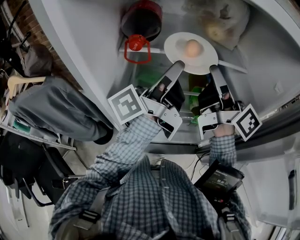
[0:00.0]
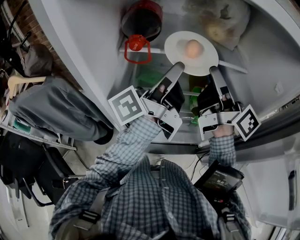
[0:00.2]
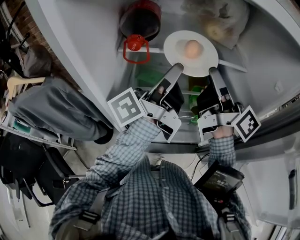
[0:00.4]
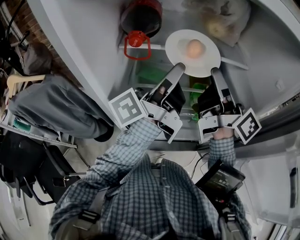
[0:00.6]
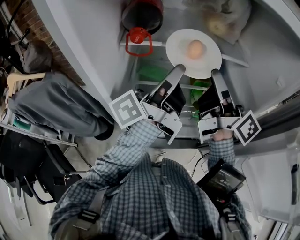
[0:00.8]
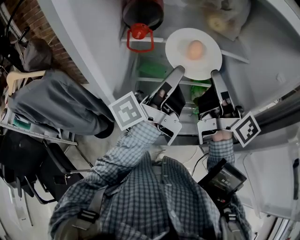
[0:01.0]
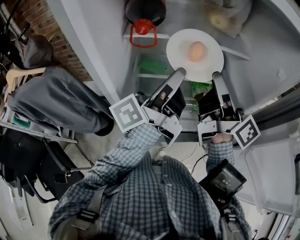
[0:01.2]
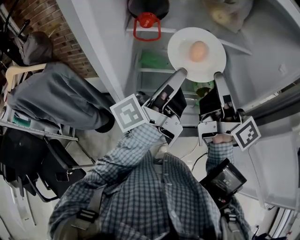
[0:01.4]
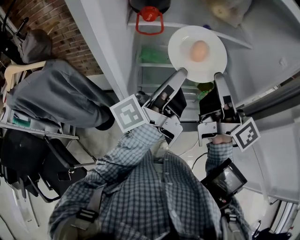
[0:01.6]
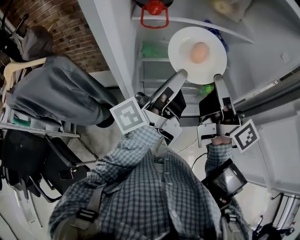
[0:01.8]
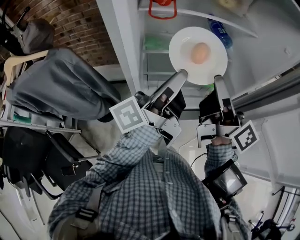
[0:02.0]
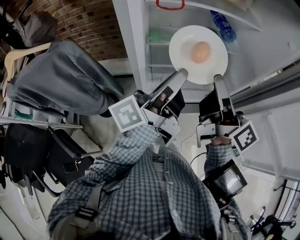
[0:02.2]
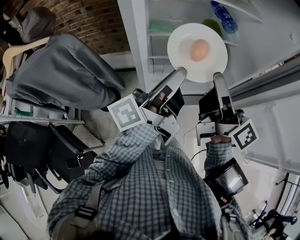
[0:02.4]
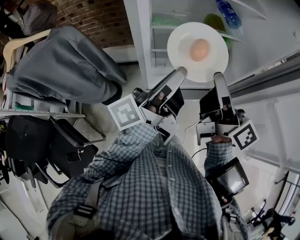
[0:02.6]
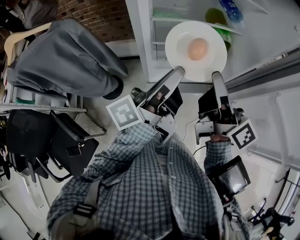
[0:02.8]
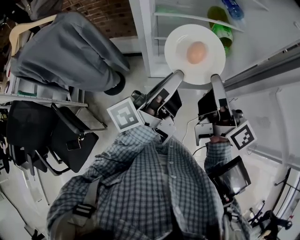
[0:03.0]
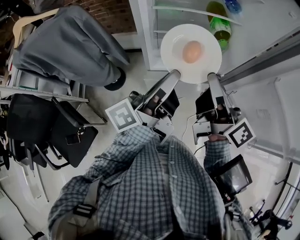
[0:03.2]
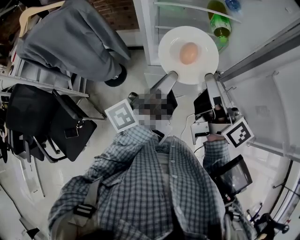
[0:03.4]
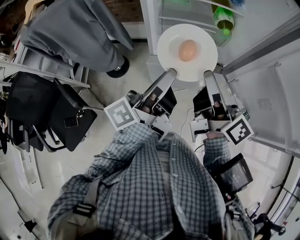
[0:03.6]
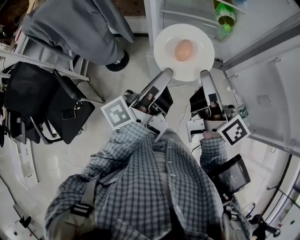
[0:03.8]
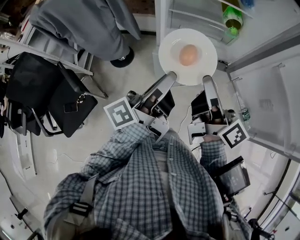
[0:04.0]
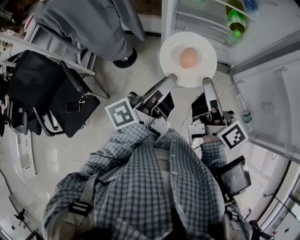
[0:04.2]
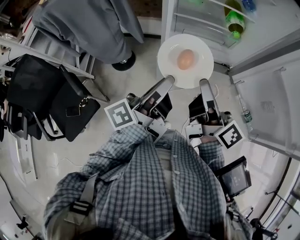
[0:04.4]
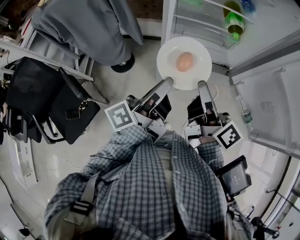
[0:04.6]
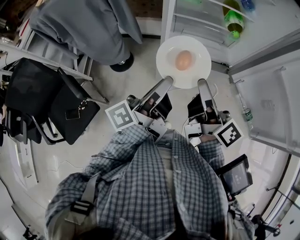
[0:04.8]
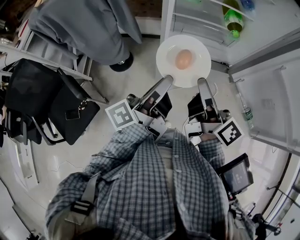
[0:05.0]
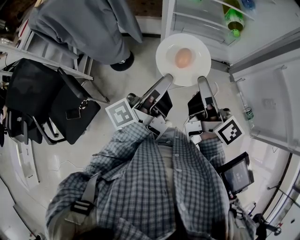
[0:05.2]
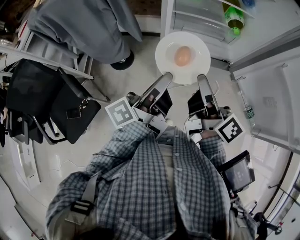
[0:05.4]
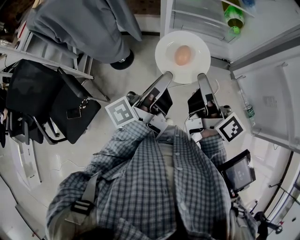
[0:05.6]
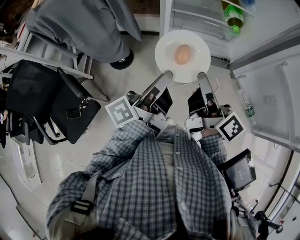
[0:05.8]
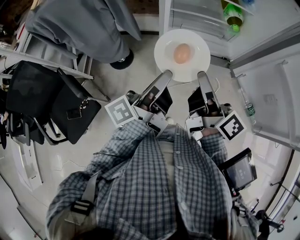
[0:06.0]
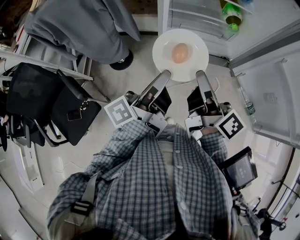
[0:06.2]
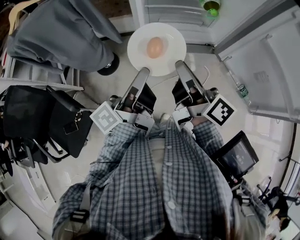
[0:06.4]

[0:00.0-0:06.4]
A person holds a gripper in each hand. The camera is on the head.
0:00.0 to 0:01.6: The two grippers go approximately 10 cm backward.
0:01.6 to 0:03.2: The two grippers go roughly 20 cm backward and downward.
0:03.2 to 0:04.8: Both grippers move backward and to the left, some 10 cm.
0:04.8 to 0:06.4: There are only small adjustments of the grippers.

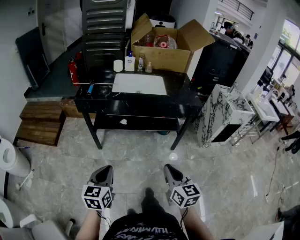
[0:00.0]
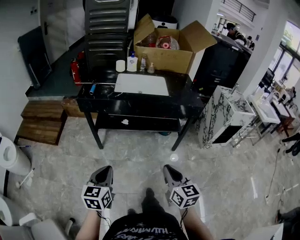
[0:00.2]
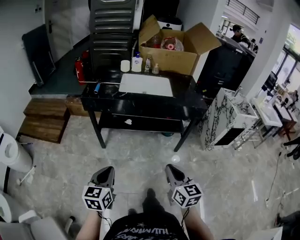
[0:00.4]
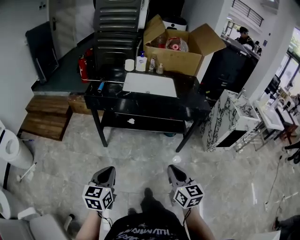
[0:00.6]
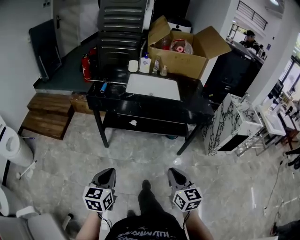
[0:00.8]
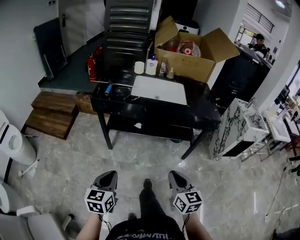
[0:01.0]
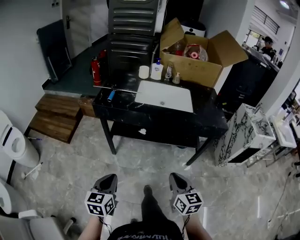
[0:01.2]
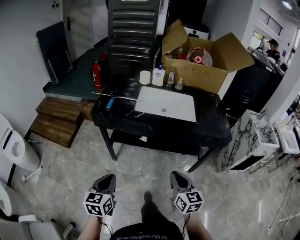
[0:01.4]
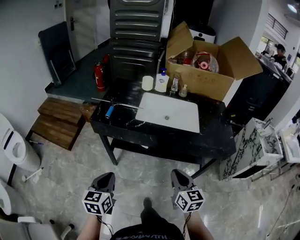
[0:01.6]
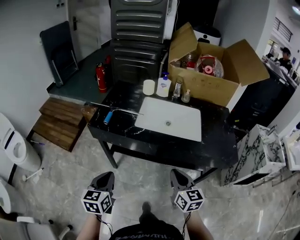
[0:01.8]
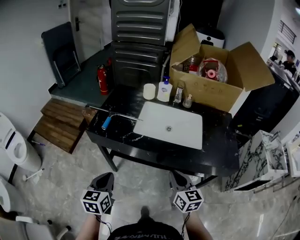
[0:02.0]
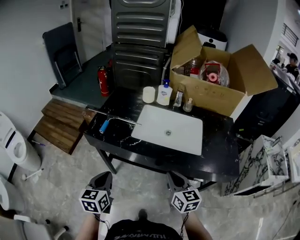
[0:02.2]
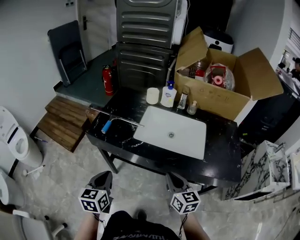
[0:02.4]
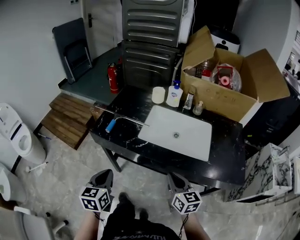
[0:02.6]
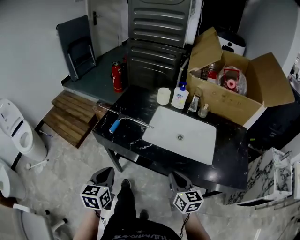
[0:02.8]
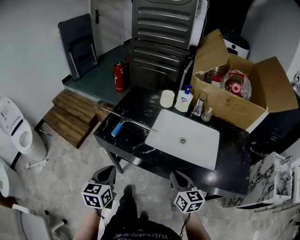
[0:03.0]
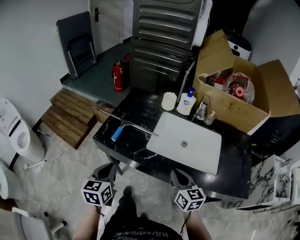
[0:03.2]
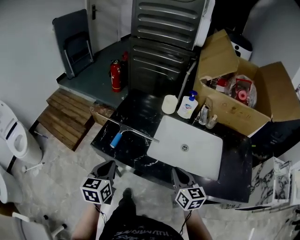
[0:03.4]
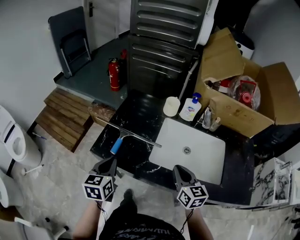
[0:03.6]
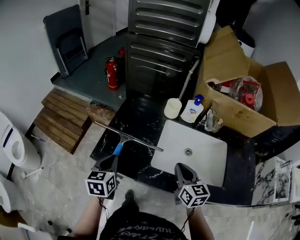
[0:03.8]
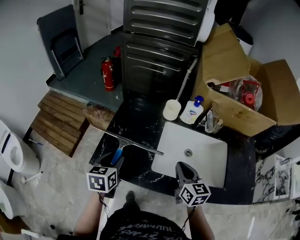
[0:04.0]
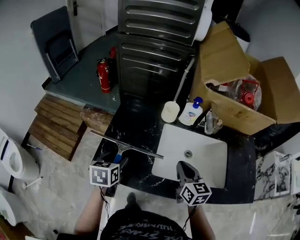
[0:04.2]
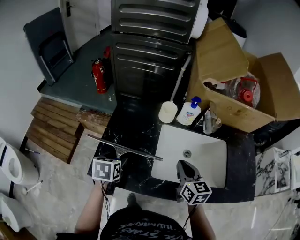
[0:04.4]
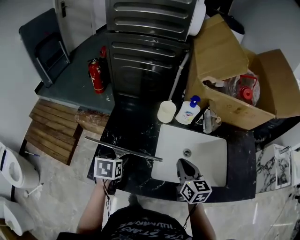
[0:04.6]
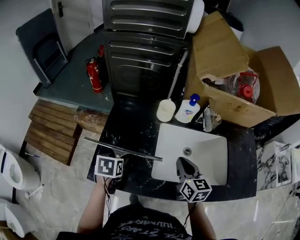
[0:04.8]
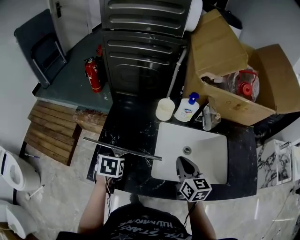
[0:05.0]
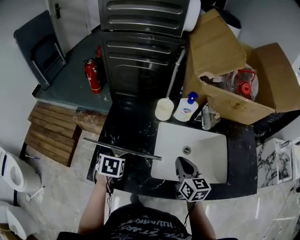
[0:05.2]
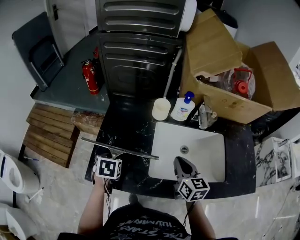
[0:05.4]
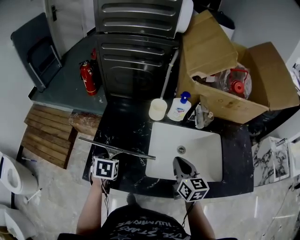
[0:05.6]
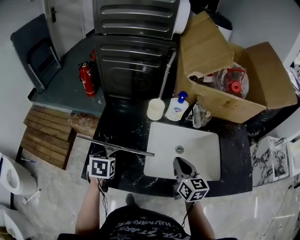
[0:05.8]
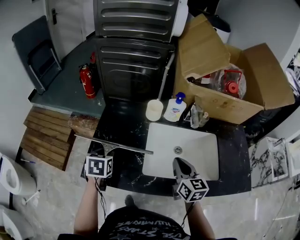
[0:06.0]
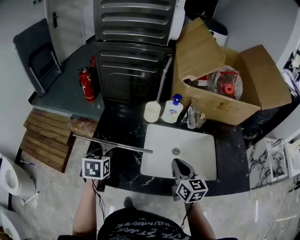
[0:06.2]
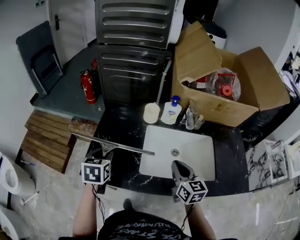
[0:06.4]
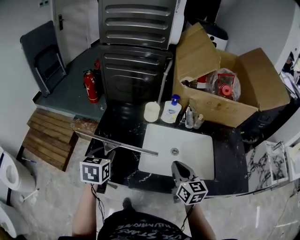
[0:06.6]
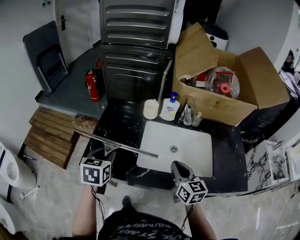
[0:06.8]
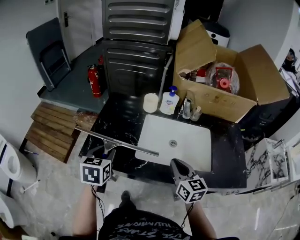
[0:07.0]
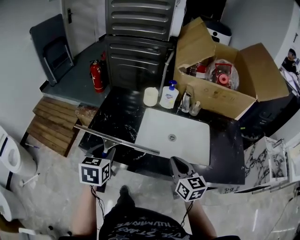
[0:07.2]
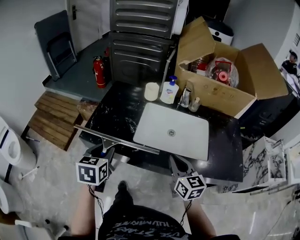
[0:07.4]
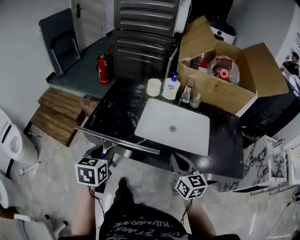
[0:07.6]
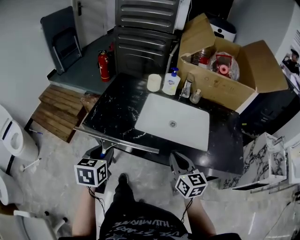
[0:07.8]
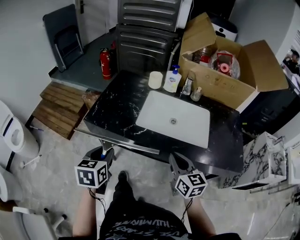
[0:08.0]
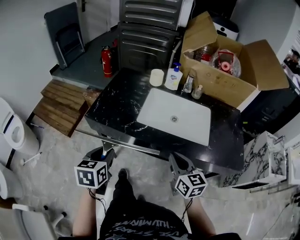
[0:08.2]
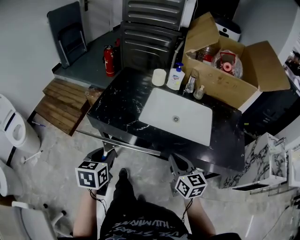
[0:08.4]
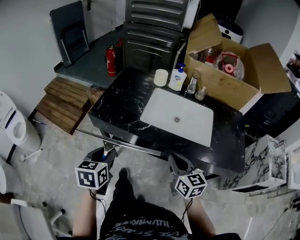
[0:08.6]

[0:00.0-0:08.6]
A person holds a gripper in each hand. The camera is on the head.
0:00.0 to 0:01.4: The grippers both shift forward by roughly 20 cm.
0:01.4 to 0:02.8: Both grippers move forward, about 25 cm.
0:02.8 to 0:04.4: Both grippers travel together forward, about 30 cm. The left gripper rotates some 30 degrees, and opens up.
0:04.4 to 0:05.8: The left gripper closes up.
0:05.8 to 0:07.2: The left gripper heads backward and upward, covering some 20 cm. The right gripper shifts approximately 15 cm backward.
0:07.2 to 0:08.6: The grippers both shift backward by approximately 15 cm.

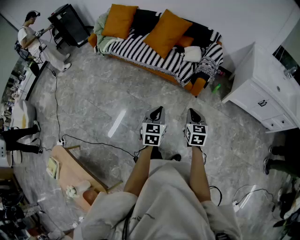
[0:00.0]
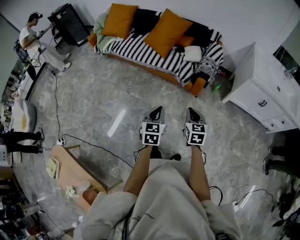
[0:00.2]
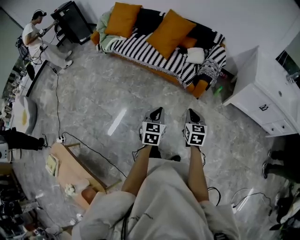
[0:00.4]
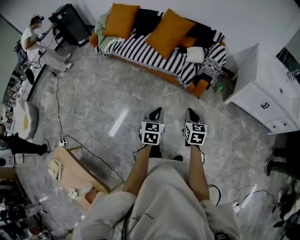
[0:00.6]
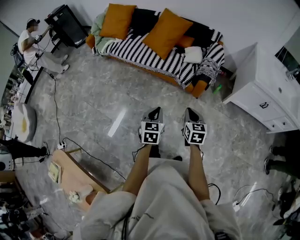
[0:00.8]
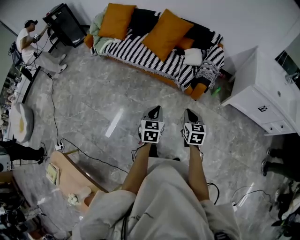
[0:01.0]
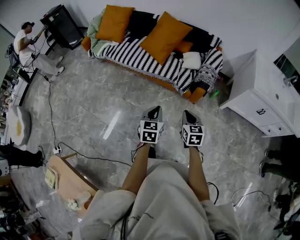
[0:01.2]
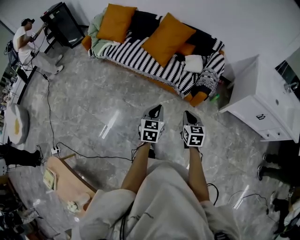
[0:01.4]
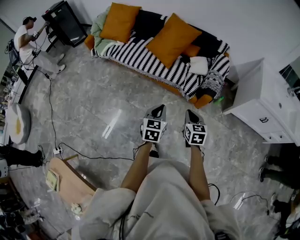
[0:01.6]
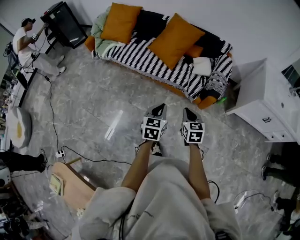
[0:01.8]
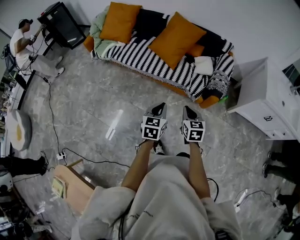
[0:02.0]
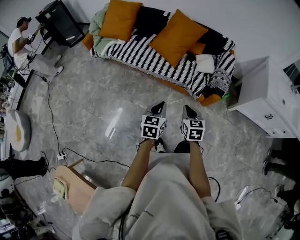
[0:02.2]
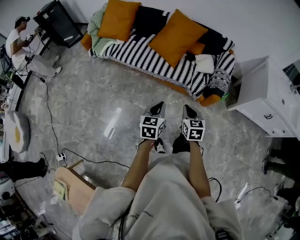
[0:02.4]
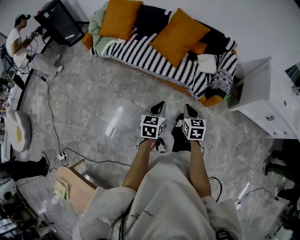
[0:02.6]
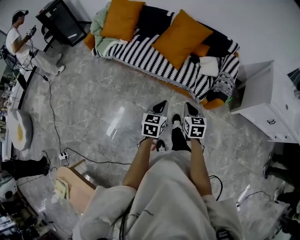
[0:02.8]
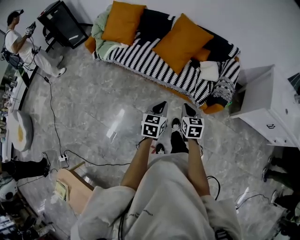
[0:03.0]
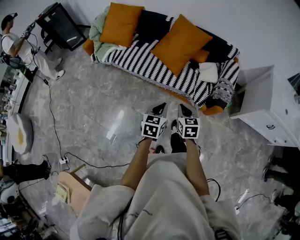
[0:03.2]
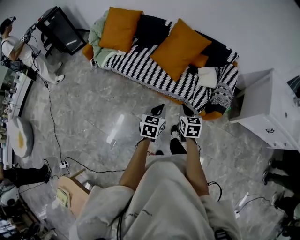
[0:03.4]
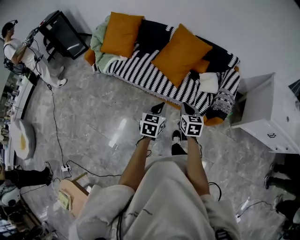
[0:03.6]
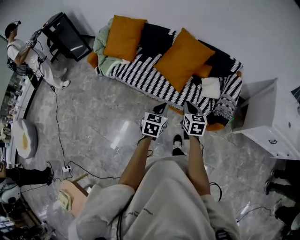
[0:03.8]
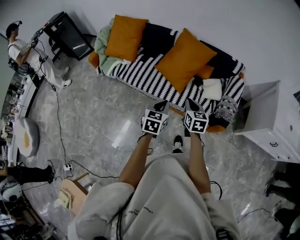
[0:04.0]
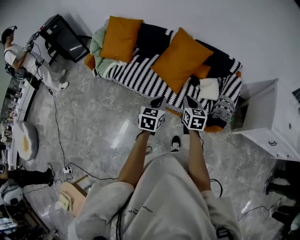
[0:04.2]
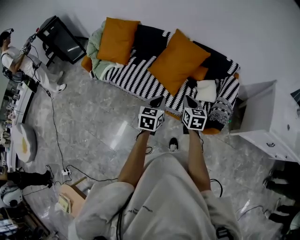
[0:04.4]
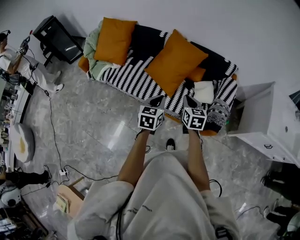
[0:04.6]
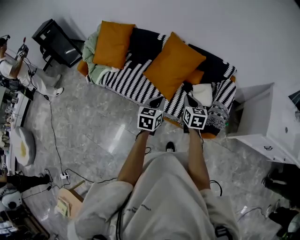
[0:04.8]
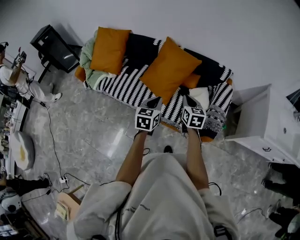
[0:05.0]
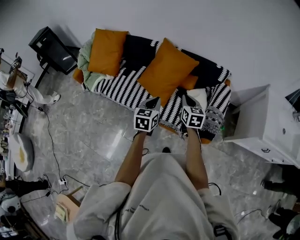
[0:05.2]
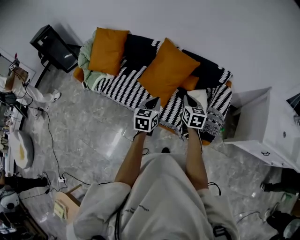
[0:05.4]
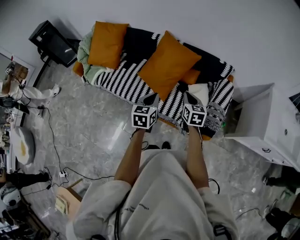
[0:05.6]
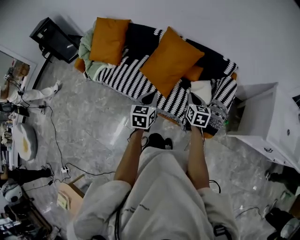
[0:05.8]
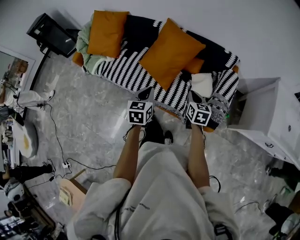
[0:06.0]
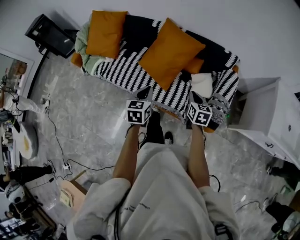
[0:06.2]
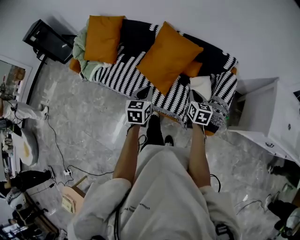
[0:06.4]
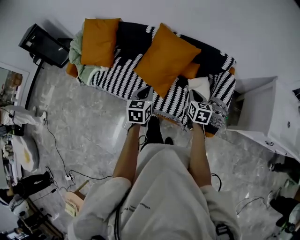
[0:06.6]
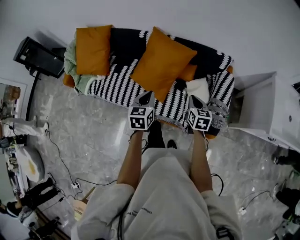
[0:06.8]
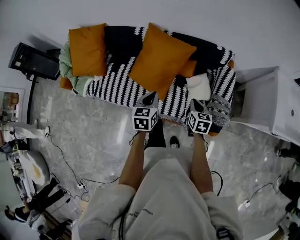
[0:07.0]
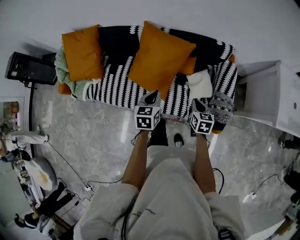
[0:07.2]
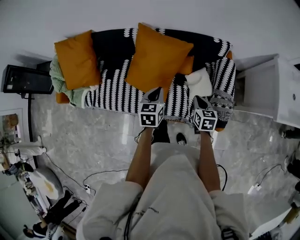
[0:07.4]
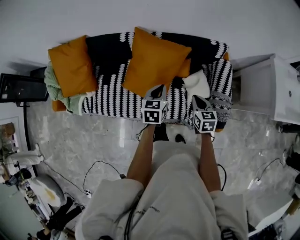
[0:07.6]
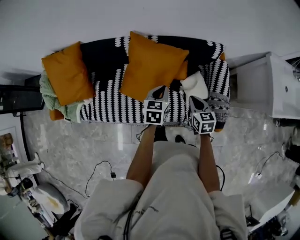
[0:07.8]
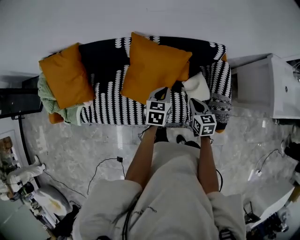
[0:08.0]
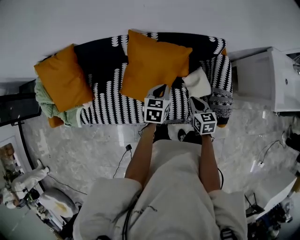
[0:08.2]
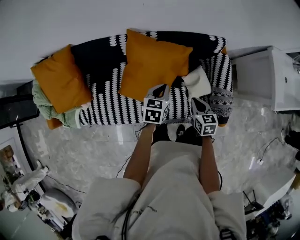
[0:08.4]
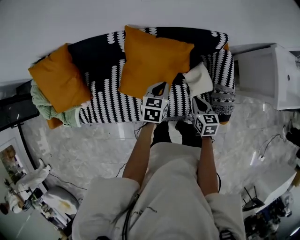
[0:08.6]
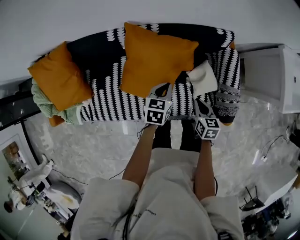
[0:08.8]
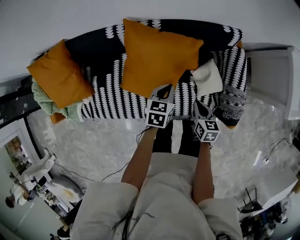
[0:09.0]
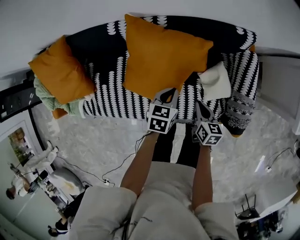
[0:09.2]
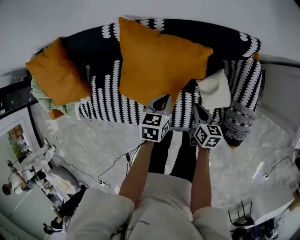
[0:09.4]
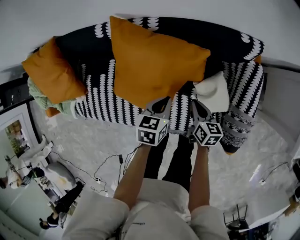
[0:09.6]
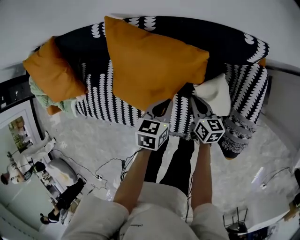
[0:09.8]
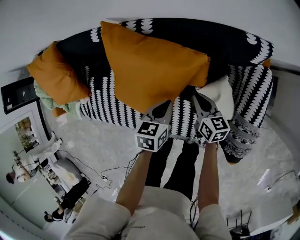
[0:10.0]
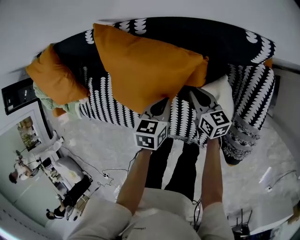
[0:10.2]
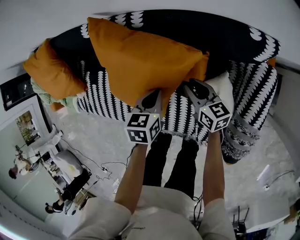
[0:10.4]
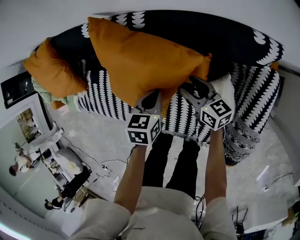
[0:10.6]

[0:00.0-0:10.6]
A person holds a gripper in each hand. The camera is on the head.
0:00.0 to 0:01.6: Both grippers move forward and to the left, some 20 cm.
0:01.6 to 0:03.0: The left gripper moves forward and to the left, approximately 15 cm. Meanwhile the right gripper shifts approximately 20 cm to the left and forward.
0:03.0 to 0:04.6: The two grippers go roughly 25 cm forward.
0:04.6 to 0:06.0: The right gripper shifts roughly 10 cm to the right, forward and downward. The left gripper moves forward, some 5 cm.
0:06.0 to 0:07.6: The left gripper shifts approximately 25 cm forward, and rotates roughly 20 degrees, while the right gripper heads forward, covering roughly 15 cm.
0:07.6 to 0:09.0: The left gripper heads downward and forward, covering some 15 cm. Meanwhile the right gripper goes about 10 cm downward.
0:09.0 to 0:10.6: The right gripper changes place by about 25 cm, and changes its angle by roughly 40 degrees. Meanwhile the left gripper shifts some 15 cm downward, and turns by roughly 20 degrees.
